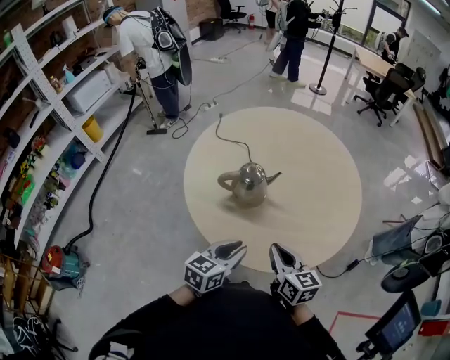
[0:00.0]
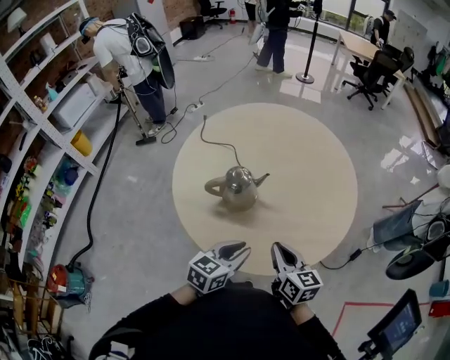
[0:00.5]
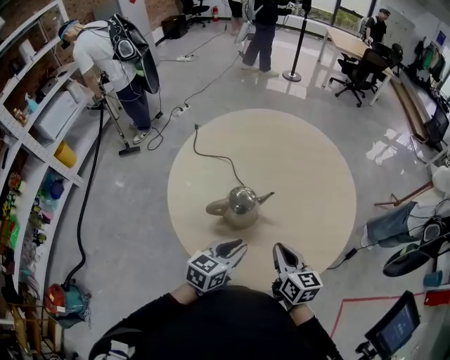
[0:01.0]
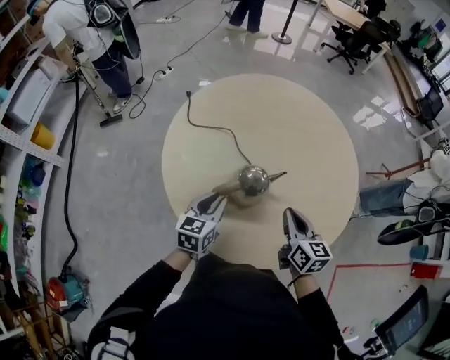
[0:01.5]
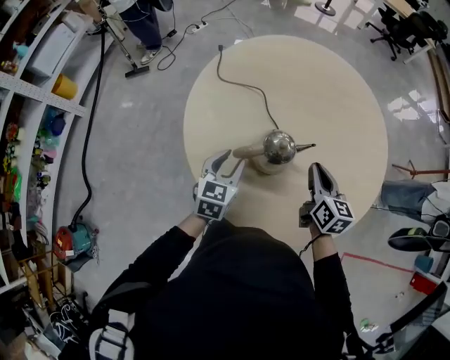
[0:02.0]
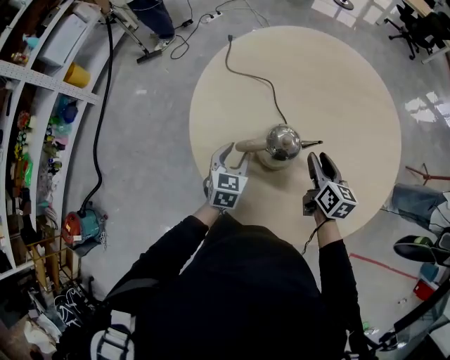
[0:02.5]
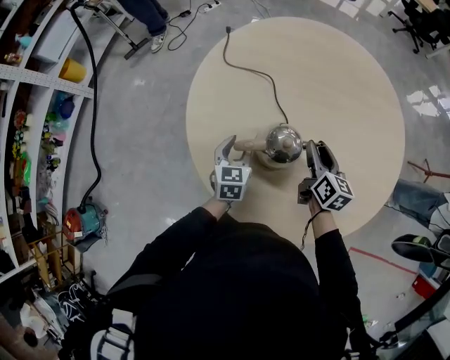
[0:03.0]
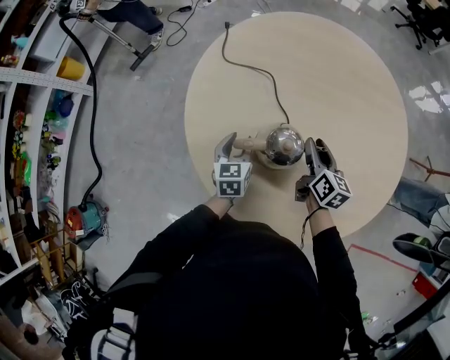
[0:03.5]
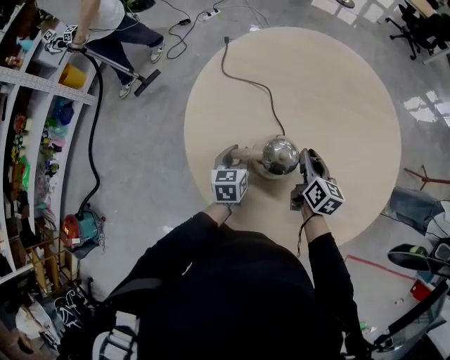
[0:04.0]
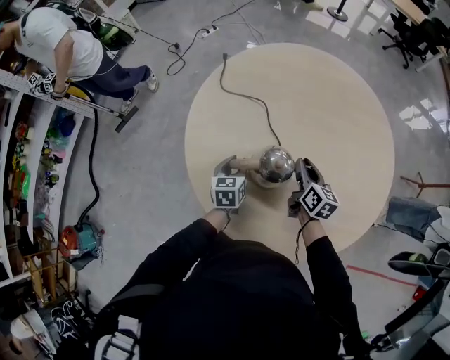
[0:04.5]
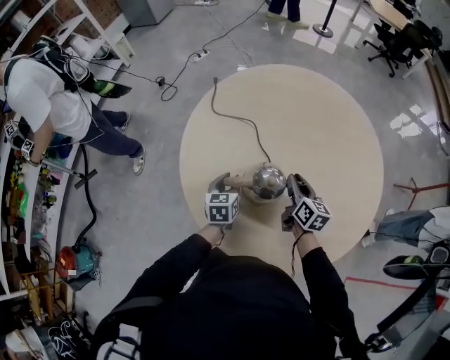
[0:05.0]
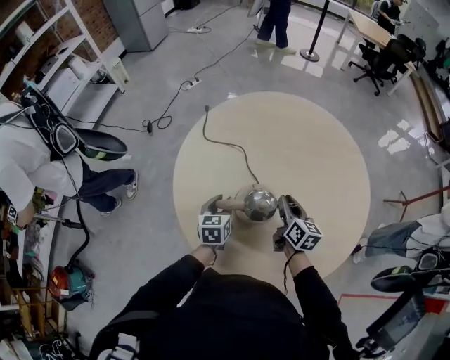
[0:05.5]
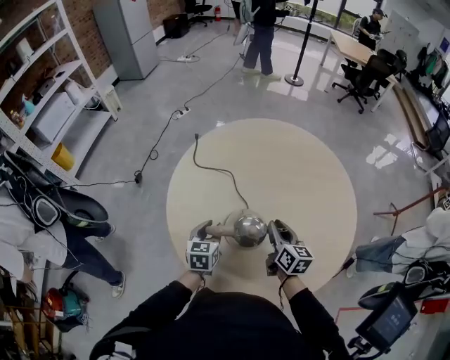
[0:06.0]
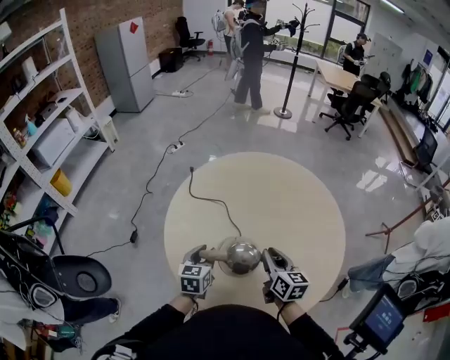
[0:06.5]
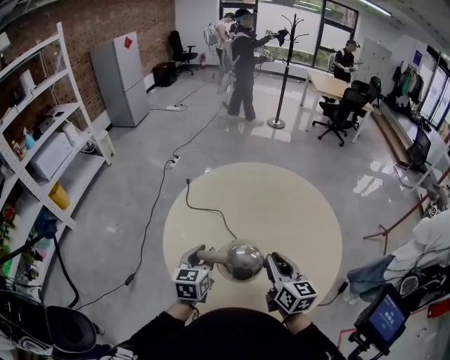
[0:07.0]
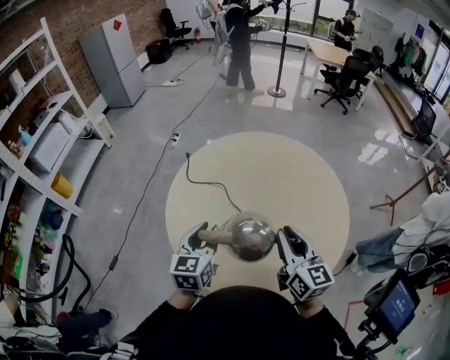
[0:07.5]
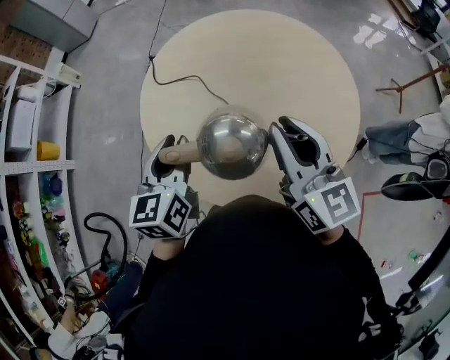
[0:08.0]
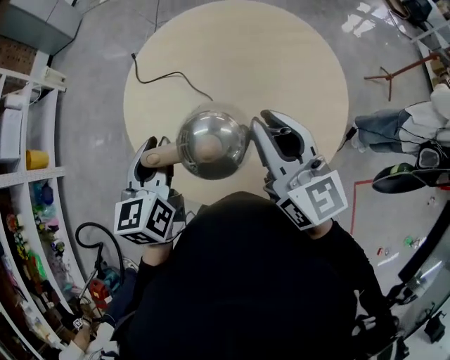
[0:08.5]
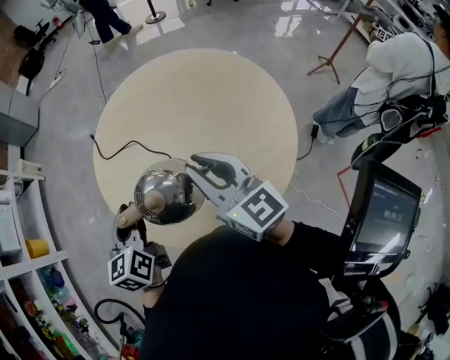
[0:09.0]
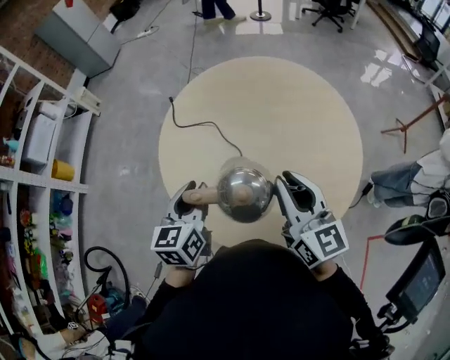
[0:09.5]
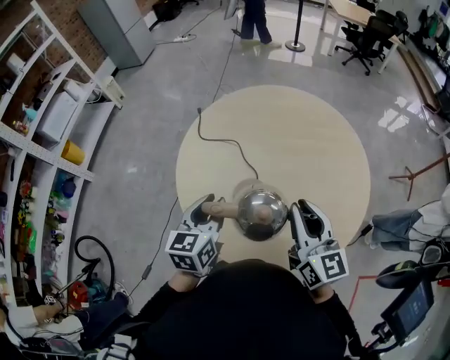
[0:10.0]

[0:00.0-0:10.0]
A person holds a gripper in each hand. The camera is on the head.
0:00.0 to 0:02.0: The left gripper travels forward and to the left by approximately 30 cm. Meanwhile the right gripper shifts about 25 cm forward.
0:02.0 to 0:04.0: Both grippers travel together downward and forward, some 10 cm. The left gripper turns by about 20 degrees.
0:04.0 to 0:06.0: The left gripper travels upward by about 10 cm; the right gripper shifts about 10 cm upward and backward.
0:06.0 to 0:08.0: The grippers both shift upward by approximately 20 cm. The right gripper swivels about 30 degrees.
0:08.0 to 0:10.0: The grippers make only small movements.

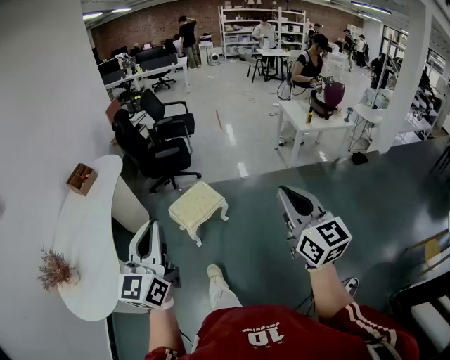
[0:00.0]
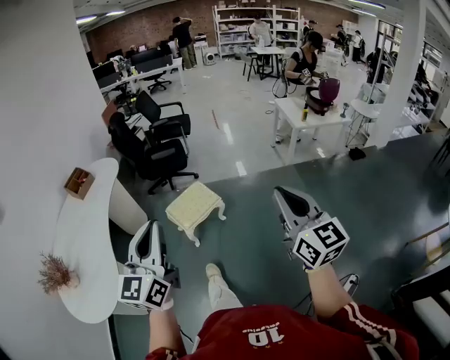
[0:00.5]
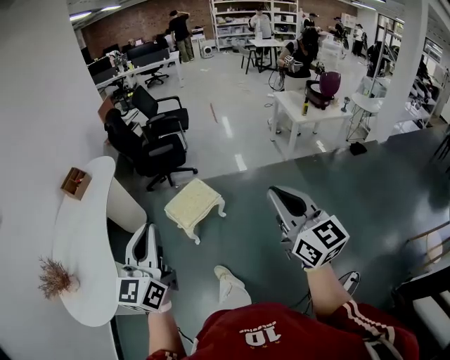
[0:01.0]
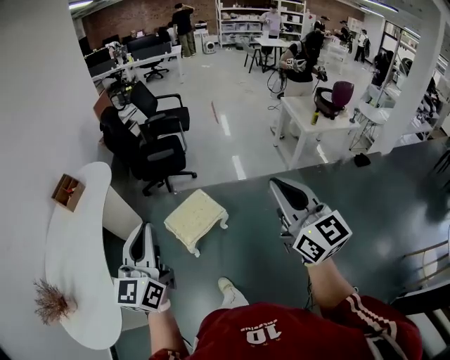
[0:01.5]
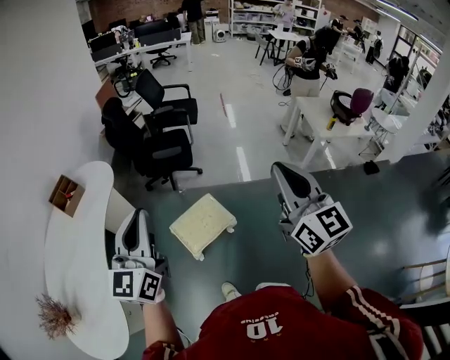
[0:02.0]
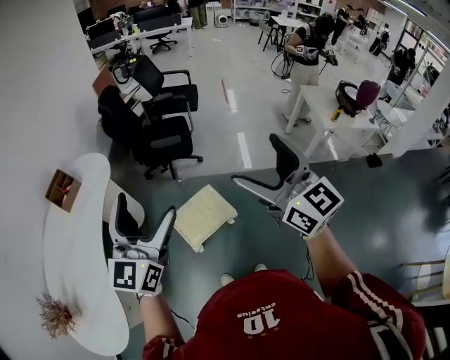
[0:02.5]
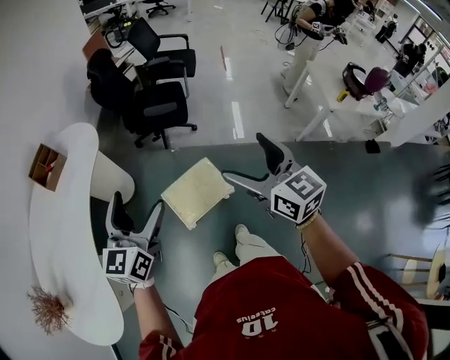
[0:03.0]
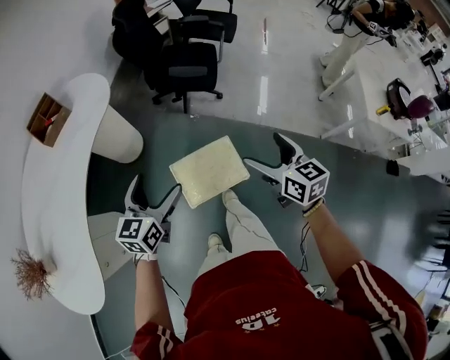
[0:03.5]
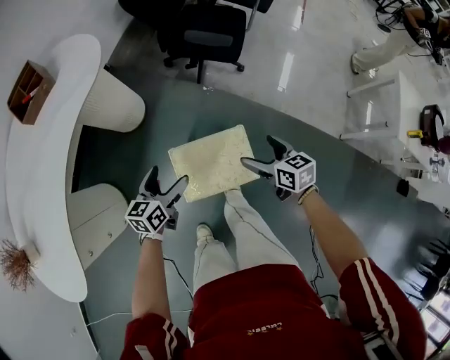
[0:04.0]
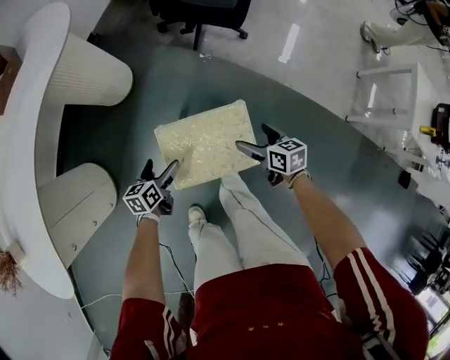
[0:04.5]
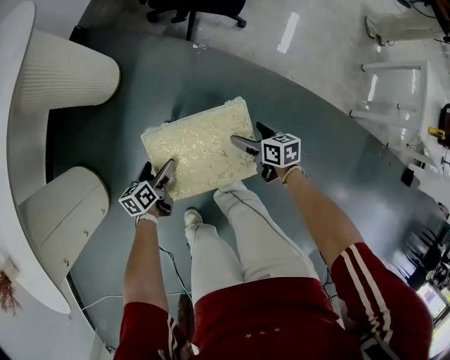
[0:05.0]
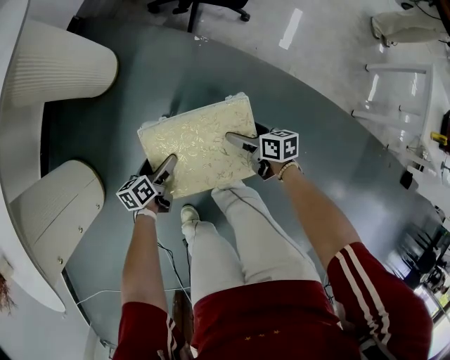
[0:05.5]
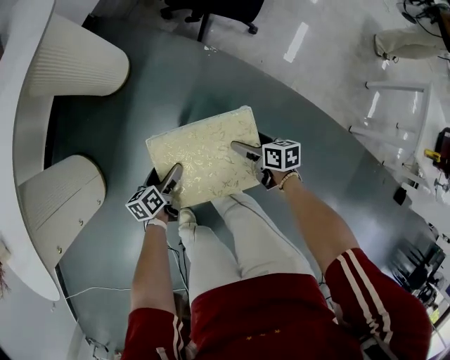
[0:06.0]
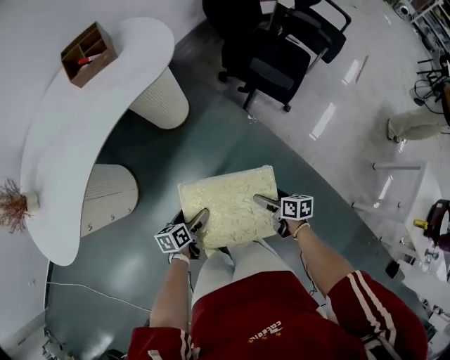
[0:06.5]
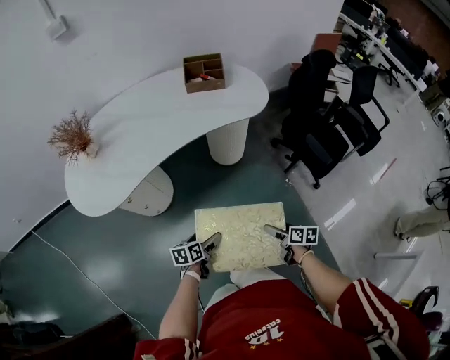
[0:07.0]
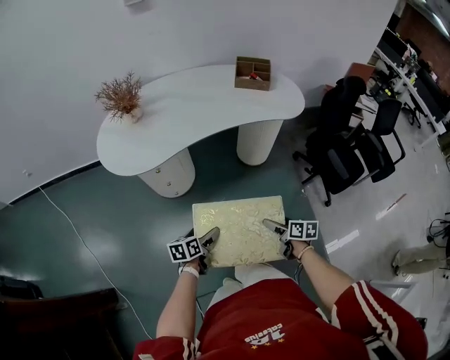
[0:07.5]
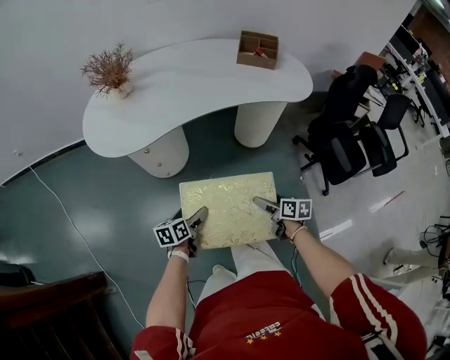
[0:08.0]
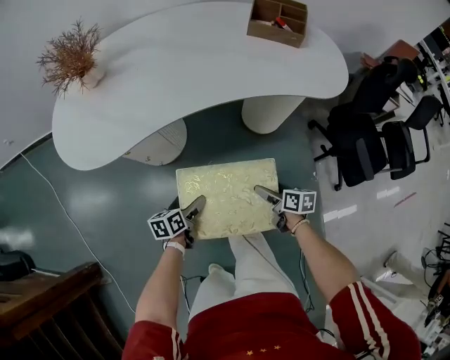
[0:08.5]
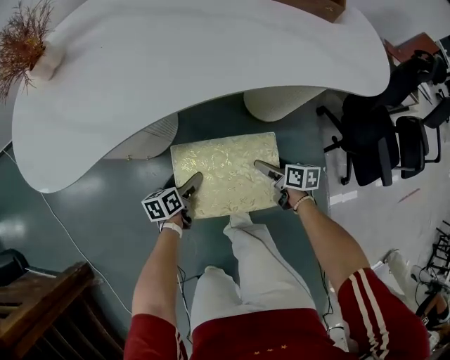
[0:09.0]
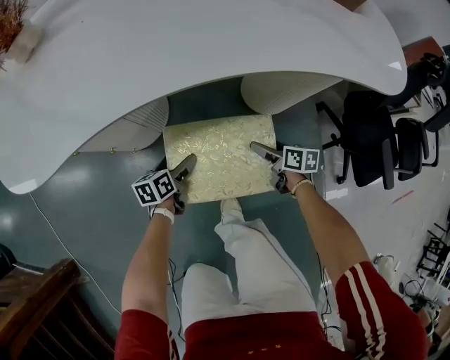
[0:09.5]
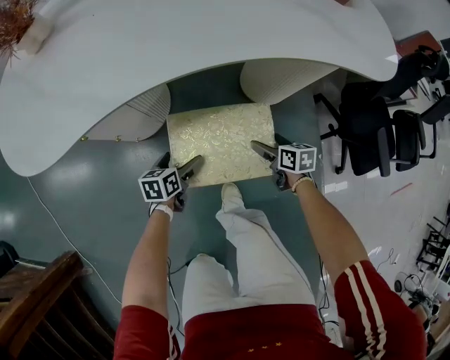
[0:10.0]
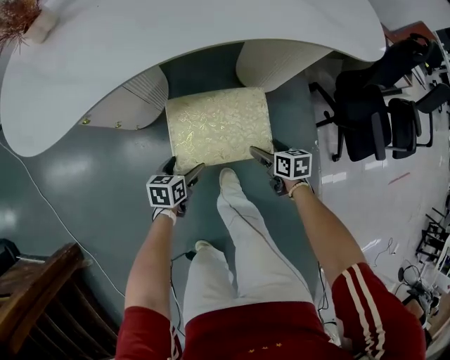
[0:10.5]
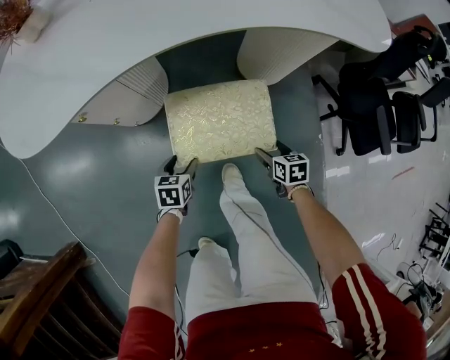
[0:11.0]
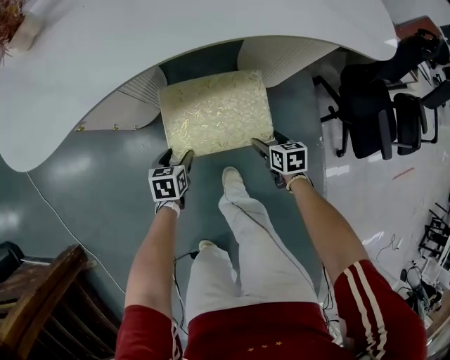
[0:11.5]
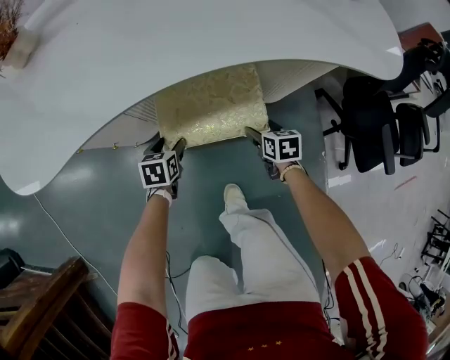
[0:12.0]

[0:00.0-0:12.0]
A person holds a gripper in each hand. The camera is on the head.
0:00.0 to 0:02.0: Both grippers move forward, approximately 35 cm.
0:02.0 to 0:04.0: The left gripper travels downward by about 50 cm, tips its fingers downward by roughly 40 degrees, and opens, while the right gripper goes about 70 cm downward and forward, angles its fingers downward, by some 40 degrees, and opens its fingers.
0:04.0 to 0:06.0: The two grippers go about 25 cm downward. The left gripper turns by roughly 30 degrees. The right gripper turns by roughly 20 degrees.
0:06.0 to 0:08.0: The left gripper changes place by approximately 40 cm, and swivels about 40 degrees, while the right gripper moves upward, some 30 cm, and rotates some 40 degrees.
0:08.0 to 0:10.0: The two grippers go approximately 35 cm downward and forward.
0:10.0 to 0:12.0: The left gripper goes roughly 5 cm forward, and closes up. The right gripper goes backward and returns, about 10 cm each way.

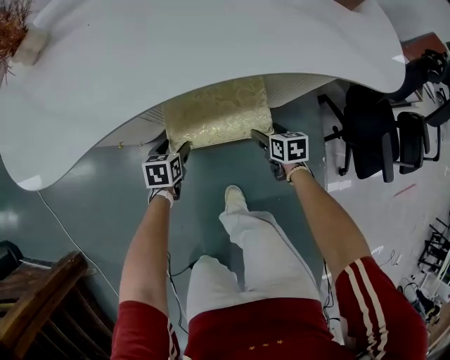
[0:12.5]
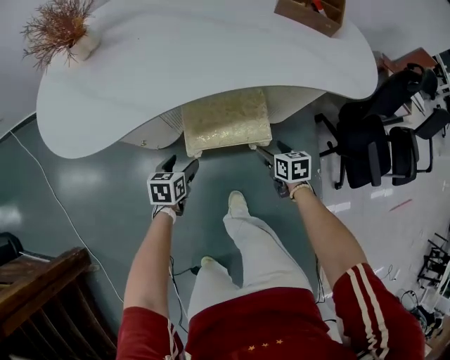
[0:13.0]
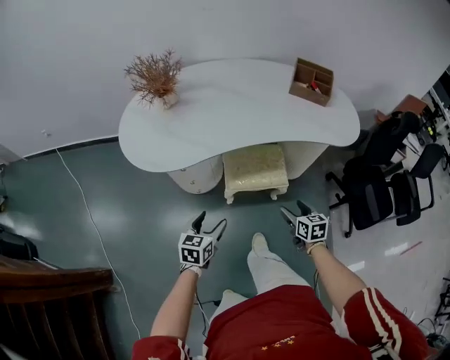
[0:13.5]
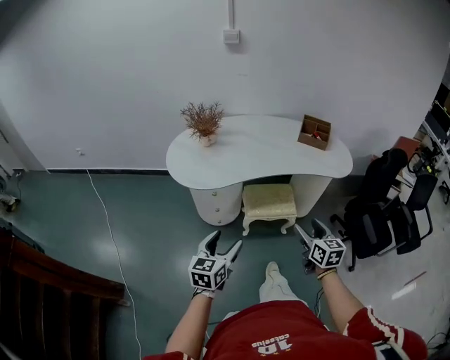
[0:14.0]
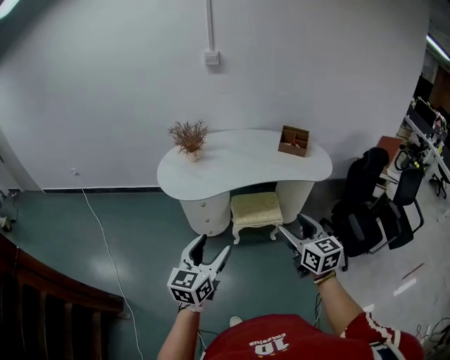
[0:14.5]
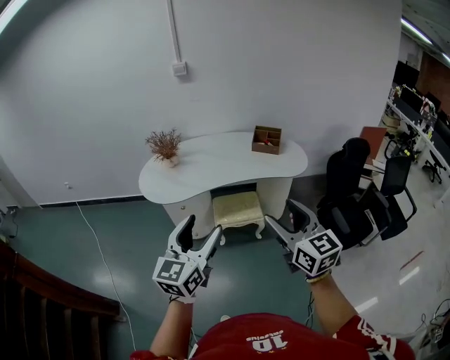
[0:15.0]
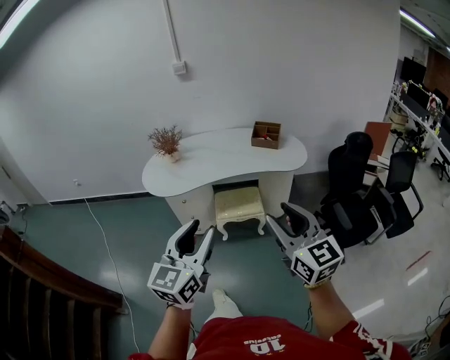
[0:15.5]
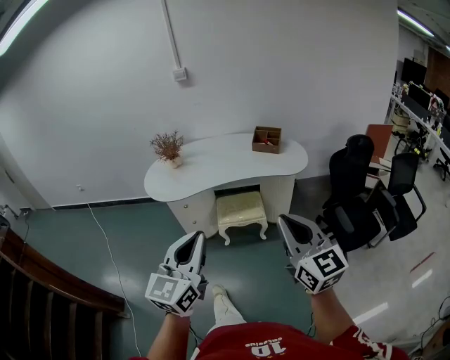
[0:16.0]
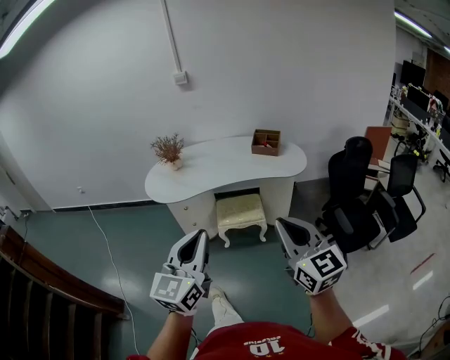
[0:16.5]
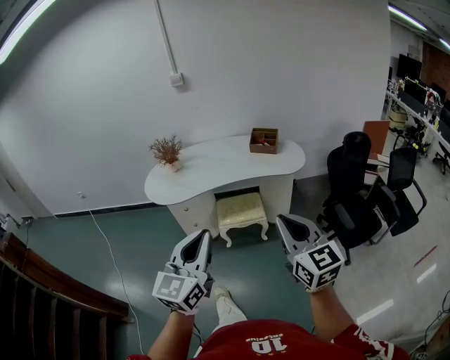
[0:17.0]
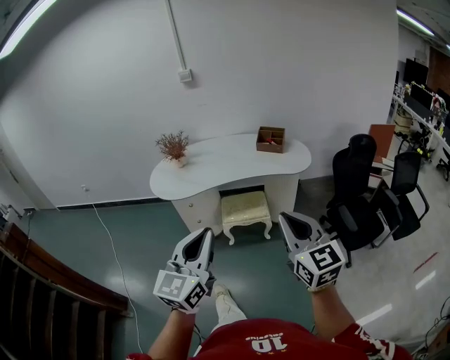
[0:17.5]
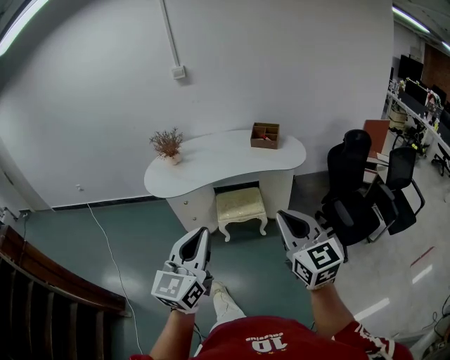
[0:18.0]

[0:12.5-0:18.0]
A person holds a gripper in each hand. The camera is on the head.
0:12.5 to 0:14.5: Both grippers move upward and backward, approximately 80 cm. The right gripper angles its fingers upward, by about 40 degrees. The left gripper tilts its fingers approximately 50 degrees upward.
0:14.5 to 0:16.0: The right gripper travels backward, to the right and upward by roughly 25 cm, swivels about 20 degrees, and closes. Meanwhile the left gripper travels to the right, upward and backward by about 25 cm, and closes.
0:16.0 to 0:18.0: The grippers stay close to where they were, moving slightly.
